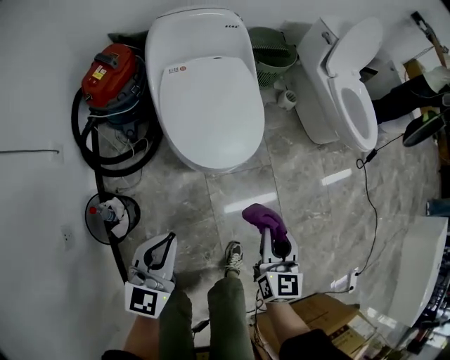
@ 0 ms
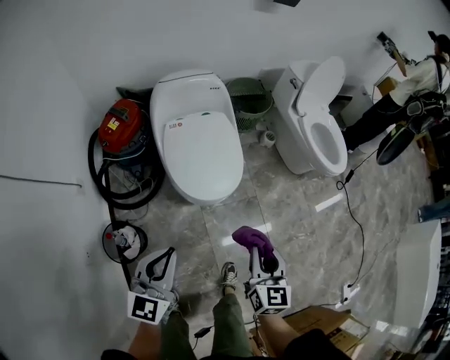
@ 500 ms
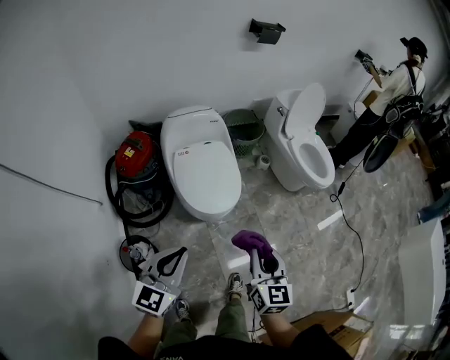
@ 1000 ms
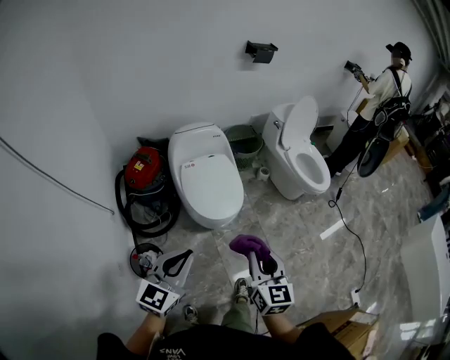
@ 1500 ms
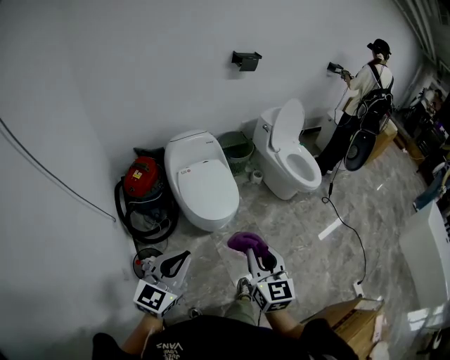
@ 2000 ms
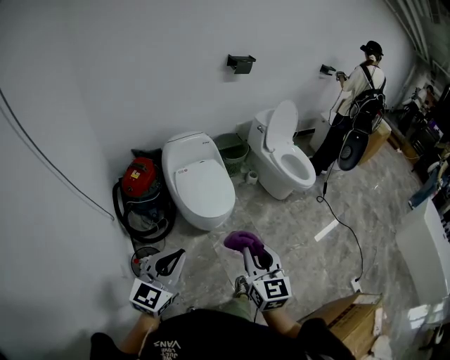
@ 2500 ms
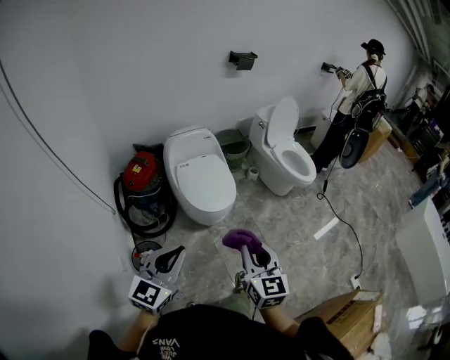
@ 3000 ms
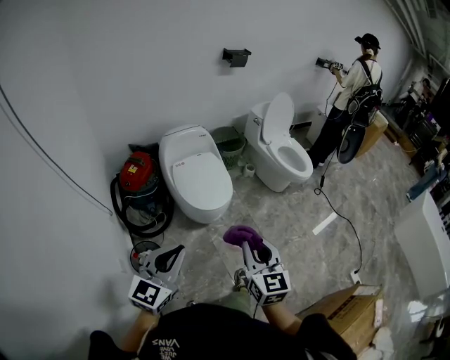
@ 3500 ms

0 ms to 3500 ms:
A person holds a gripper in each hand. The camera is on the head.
0 ms to 2000 ms: The left gripper is displaced upward by roughly 35 cm; the right gripper is displaced upward and backward by about 40 cm.
2000 ms to 3500 ms: The left gripper is displaced backward by roughly 5 cm.

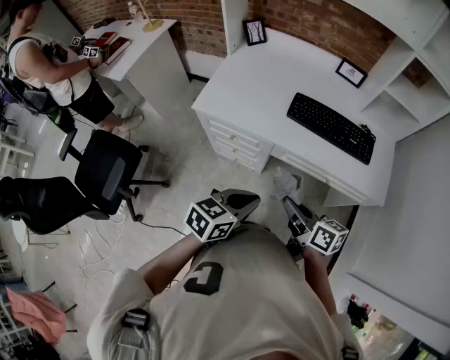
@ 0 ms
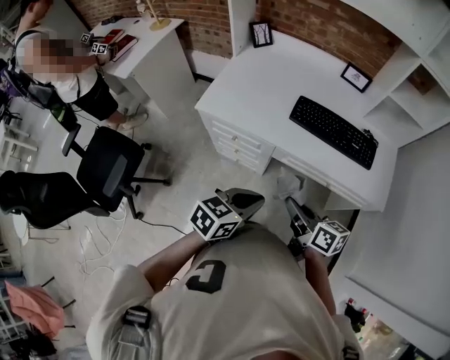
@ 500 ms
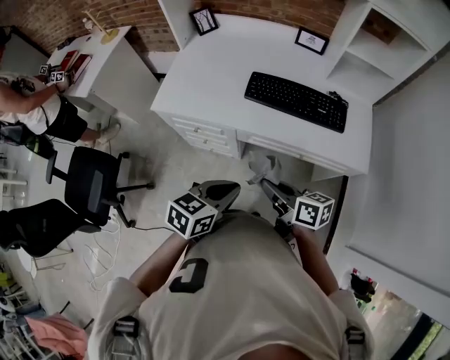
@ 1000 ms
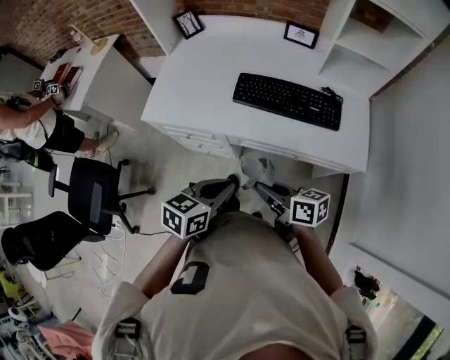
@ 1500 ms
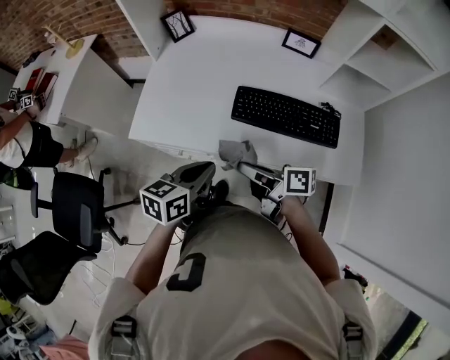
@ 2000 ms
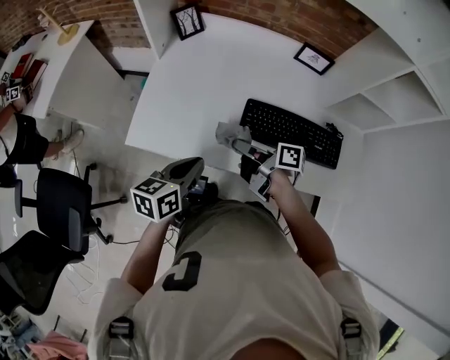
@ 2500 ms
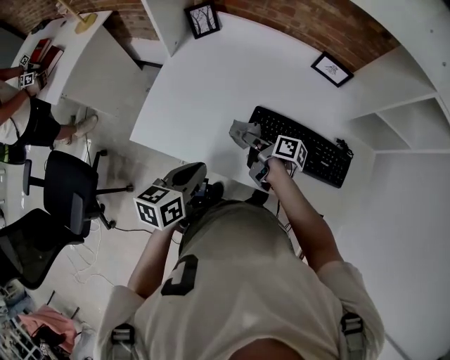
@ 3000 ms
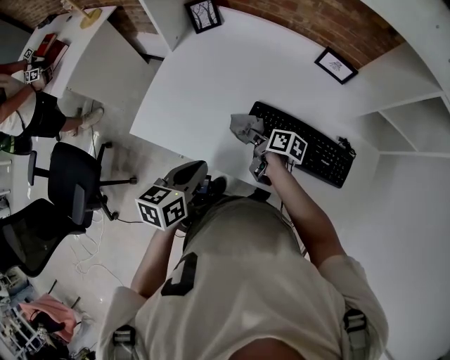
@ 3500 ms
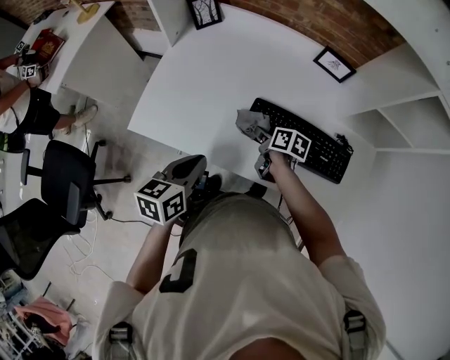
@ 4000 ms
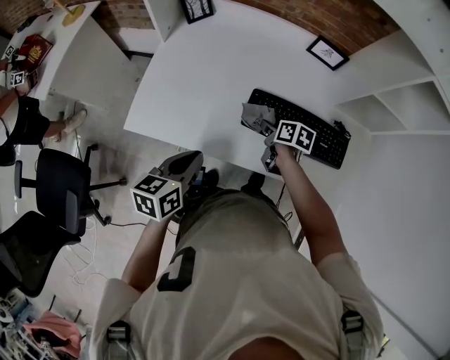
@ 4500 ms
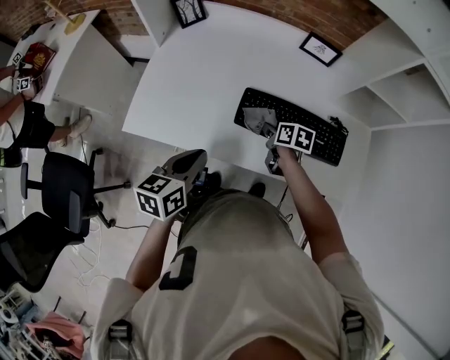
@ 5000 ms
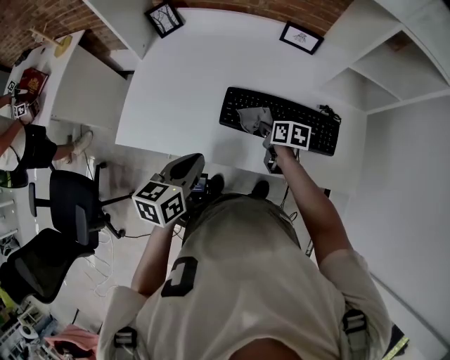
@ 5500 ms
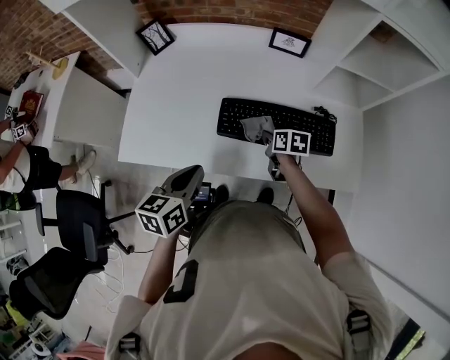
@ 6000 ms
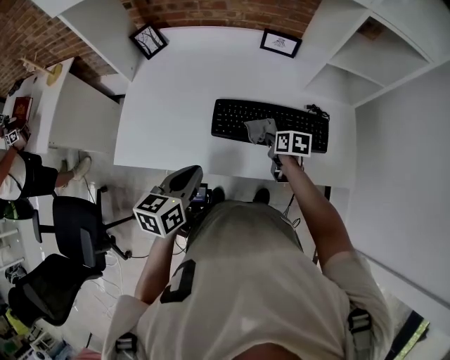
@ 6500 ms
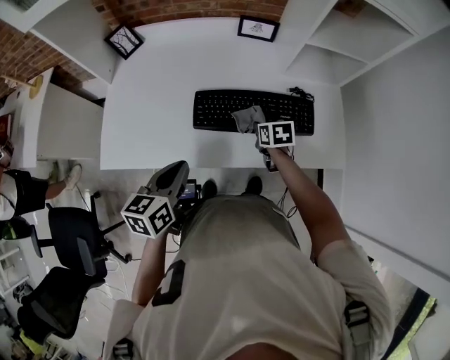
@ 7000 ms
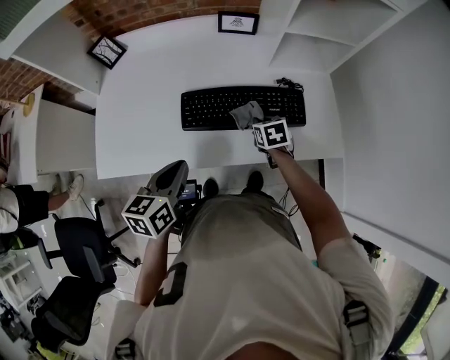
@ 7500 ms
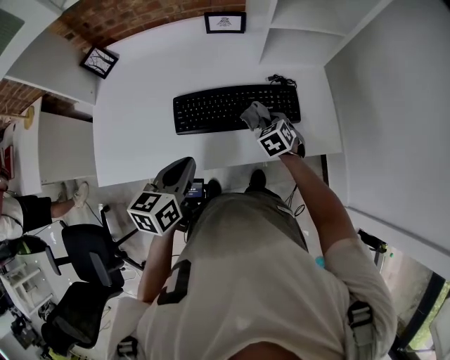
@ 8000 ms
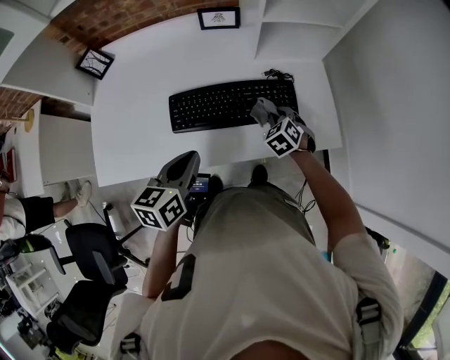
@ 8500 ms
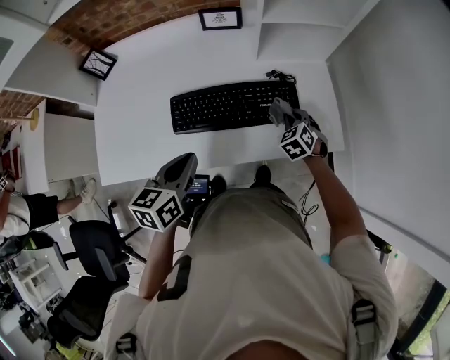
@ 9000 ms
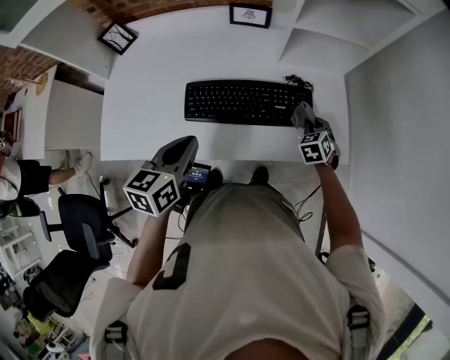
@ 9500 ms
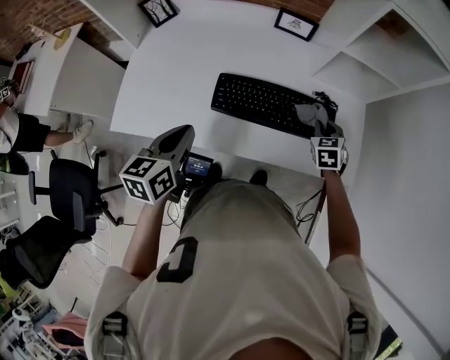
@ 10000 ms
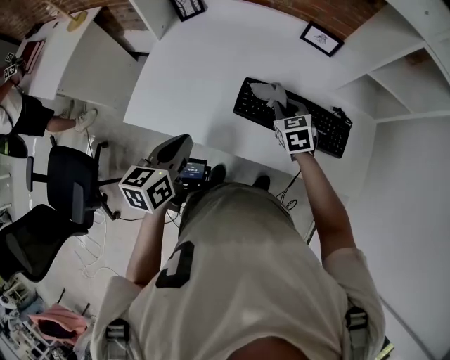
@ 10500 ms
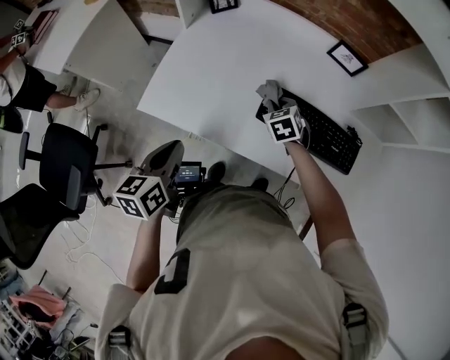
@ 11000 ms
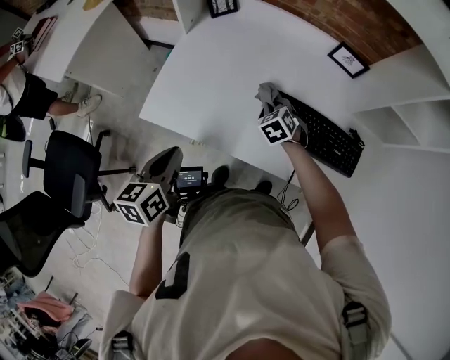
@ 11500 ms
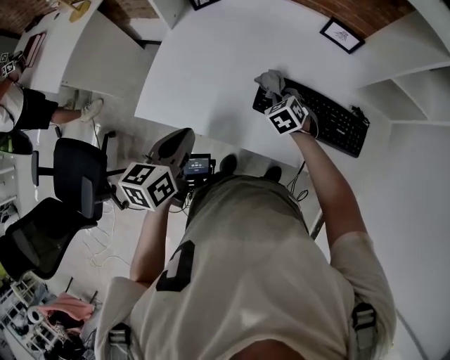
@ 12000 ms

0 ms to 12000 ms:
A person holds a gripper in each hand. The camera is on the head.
0 ms to 2000 ms: The two grippers go some 20 cm forward. The right gripper changes its angle by some 20 degrees.
2000 ms to 4000 ms: The left gripper shifts roughly 10 cm forward, while the right gripper shifts about 25 cm forward and downward, and tips its fingers downward by approximately 40 degrees.
4000 ms to 6000 ms: The left gripper travels to the right by roughly 5 cm. Meanwhile the right gripper moves to the right, roughly 10 cm.
6000 ms to 8000 ms: The grippers both shift to the right by about 10 cm. The right gripper turns by about 50 degrees.
8000 ms to 10000 ms: The right gripper heads upward, covering approximately 5 cm. The left gripper is displaced to the left by approximately 10 cm.
10000 ms to 12000 ms: The right gripper goes roughly 30 cm to the left, and swivels about 30 degrees, while the left gripper travels to the left by some 15 cm.

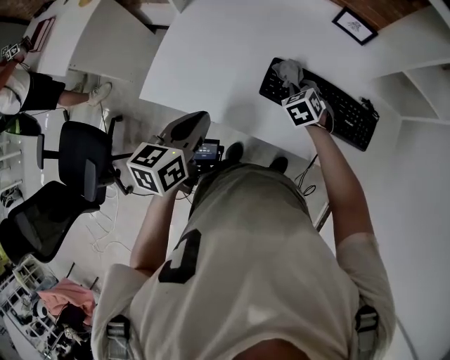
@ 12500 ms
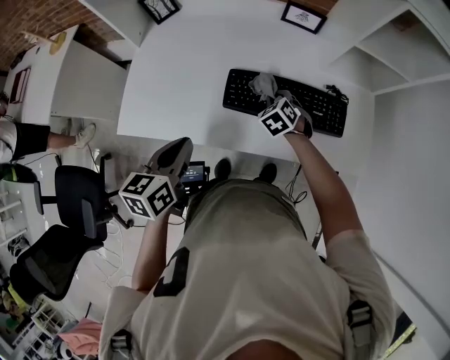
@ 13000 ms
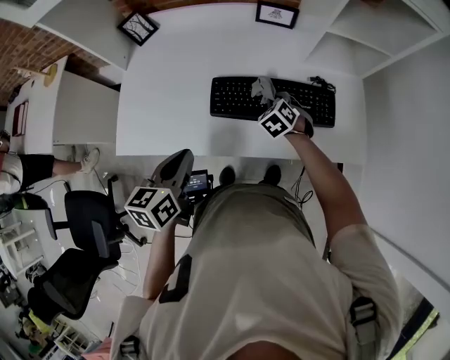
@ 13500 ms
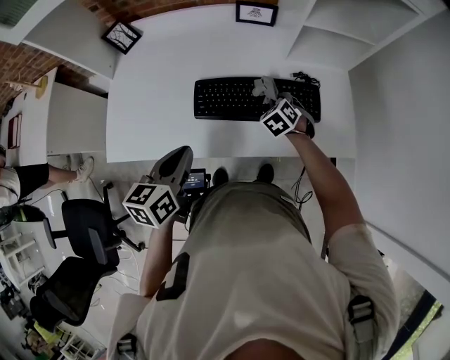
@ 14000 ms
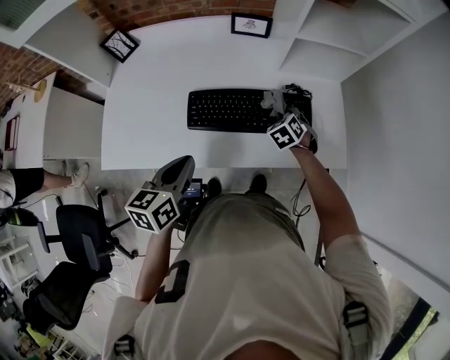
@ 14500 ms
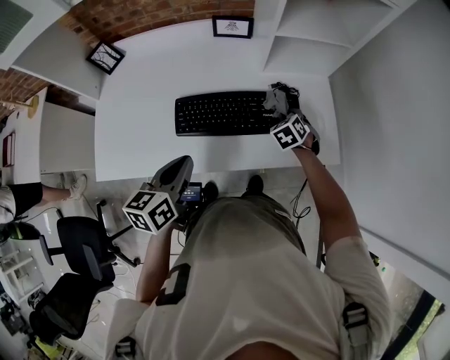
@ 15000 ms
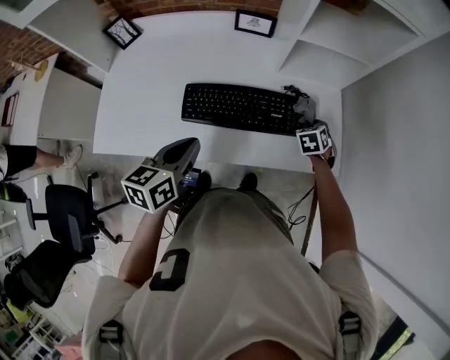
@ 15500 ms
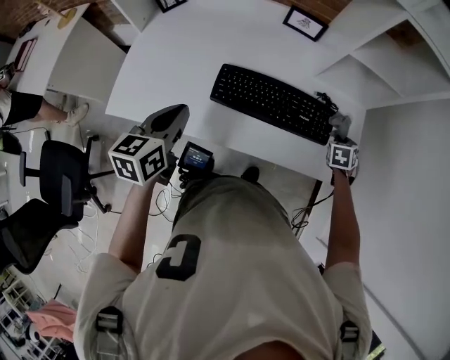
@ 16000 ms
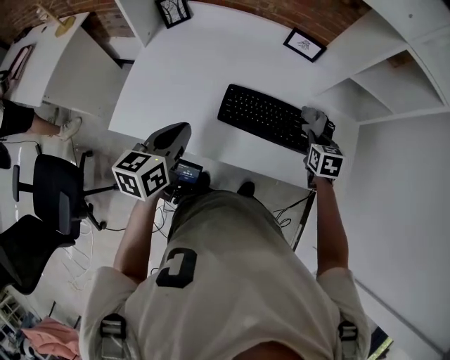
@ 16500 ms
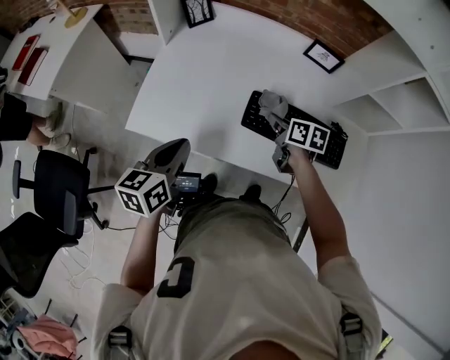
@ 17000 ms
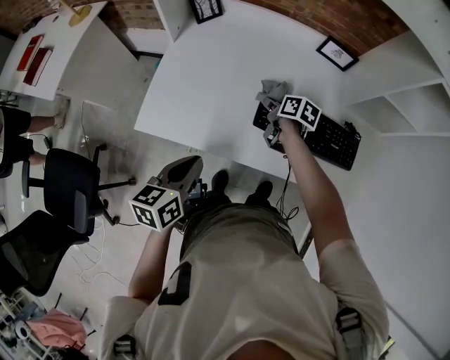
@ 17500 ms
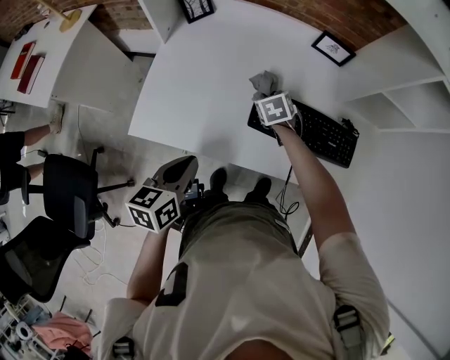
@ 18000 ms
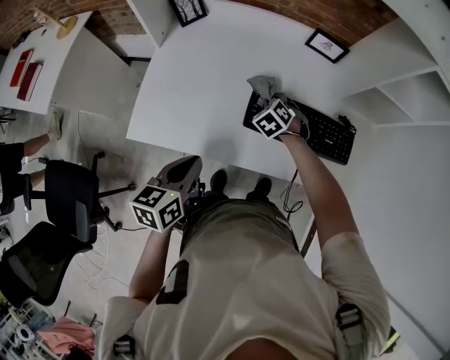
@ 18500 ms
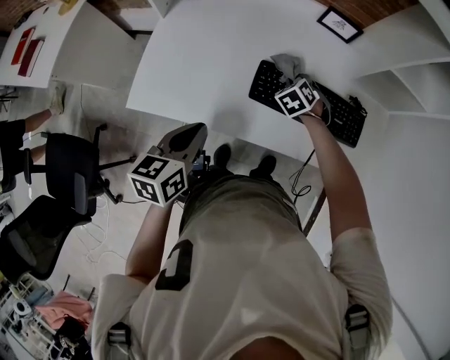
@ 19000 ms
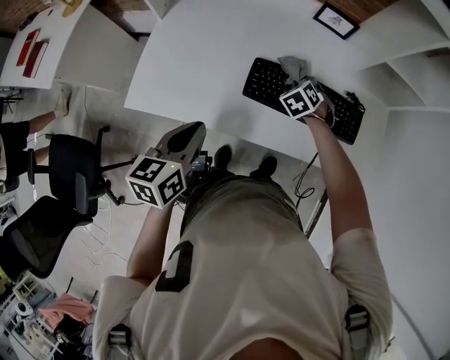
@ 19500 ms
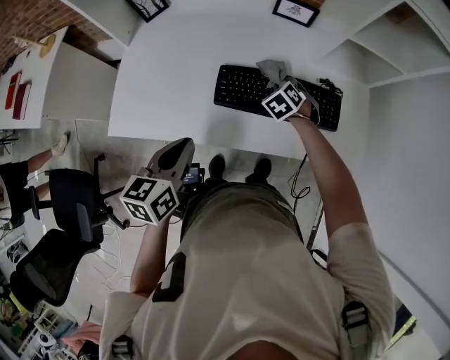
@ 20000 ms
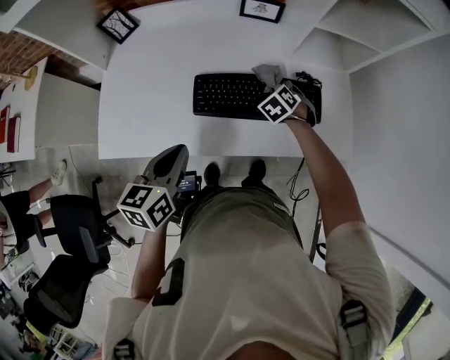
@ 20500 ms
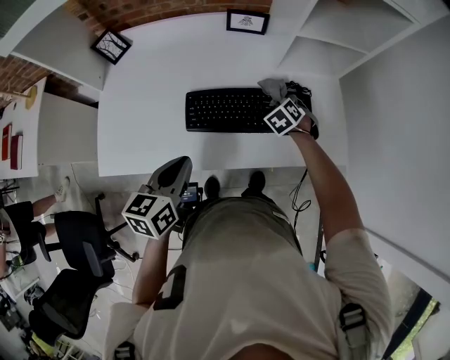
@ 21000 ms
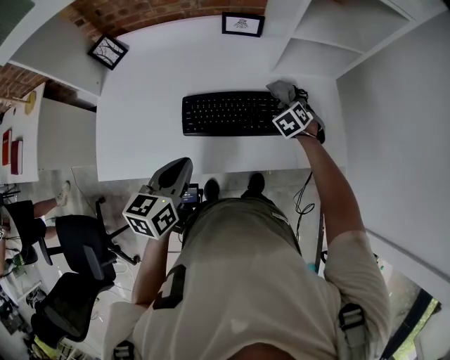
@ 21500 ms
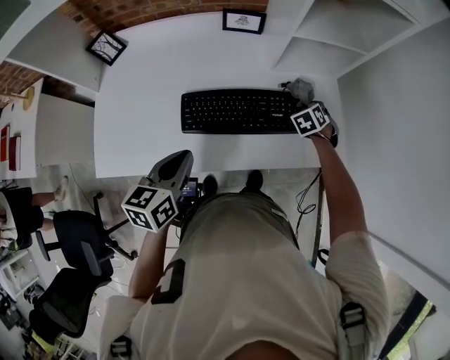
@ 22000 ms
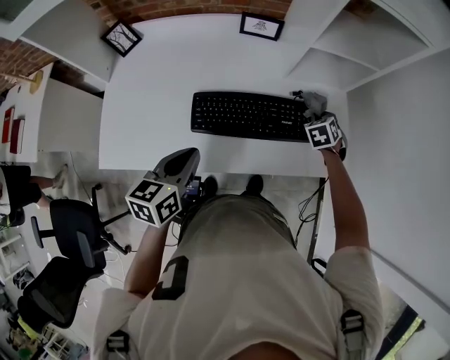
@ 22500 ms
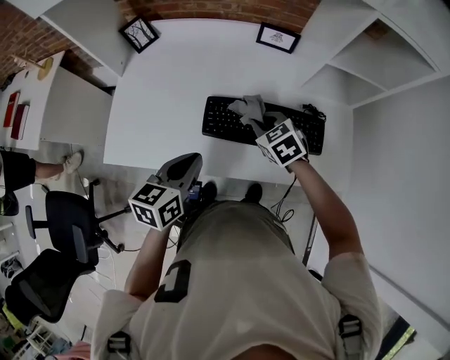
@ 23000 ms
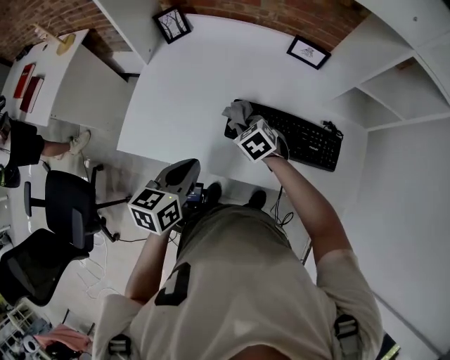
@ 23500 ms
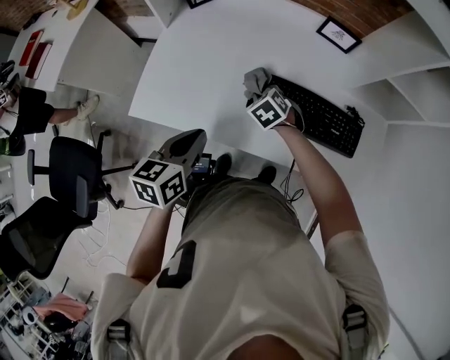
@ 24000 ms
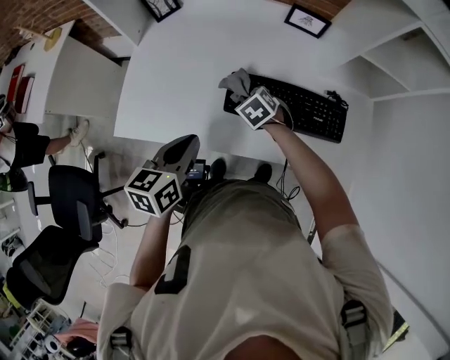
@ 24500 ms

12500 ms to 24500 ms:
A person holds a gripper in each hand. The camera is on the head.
12500 ms to 14500 ms: The right gripper heads to the right, covering some 25 cm. Meanwhile the left gripper moves to the right, roughly 15 cm.
14500 ms to 16500 ms: The left gripper travels to the left by approximately 10 cm; the right gripper is displaced upward by roughly 10 cm, moves roughly 15 cm to the right and comes back, and swivels approximately 30 degrees.
16500 ms to 18500 ms: The right gripper shifts roughly 25 cm to the left, and rolls counterclockwise, seen from behind, by some 40 degrees. Meanwhile the left gripper moves about 10 cm.
18500 ms to 20500 ms: The right gripper goes approximately 20 cm to the right; the left gripper heads to the right, covering approximately 10 cm.
20500 ms to 22500 ms: The left gripper travels forward by about 5 cm. The right gripper is displaced to the right by approximately 15 cm.
22500 ms to 24500 ms: The left gripper moves approximately 10 cm; the right gripper goes upward and returns, about 5 cm each way, and changes its angle by approximately 30 degrees.
